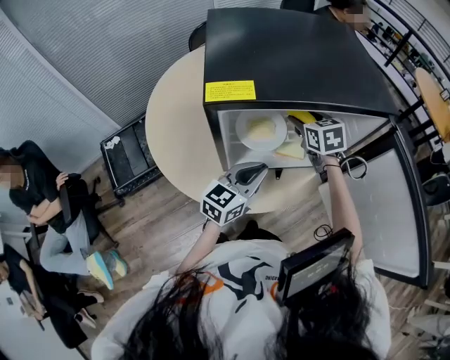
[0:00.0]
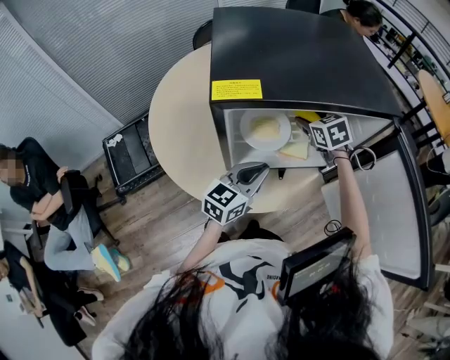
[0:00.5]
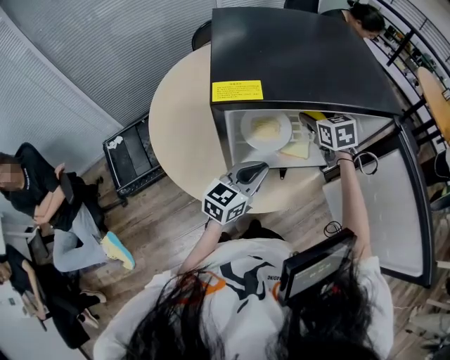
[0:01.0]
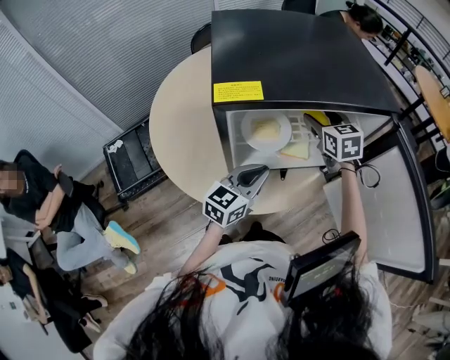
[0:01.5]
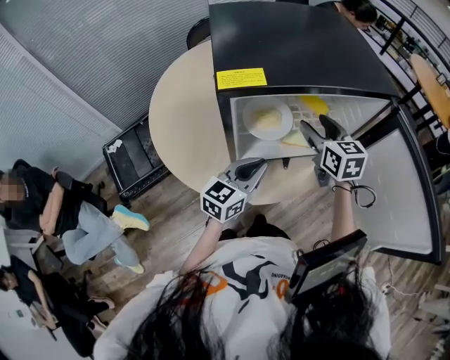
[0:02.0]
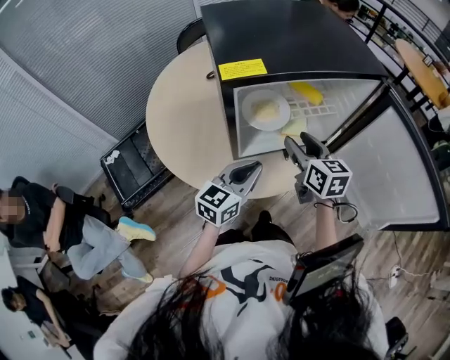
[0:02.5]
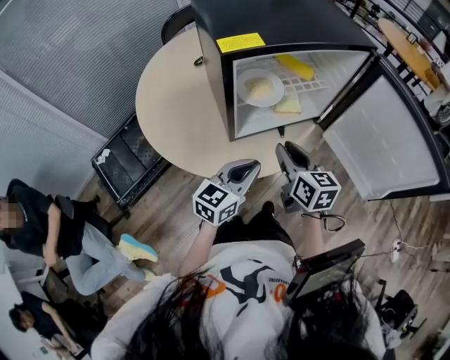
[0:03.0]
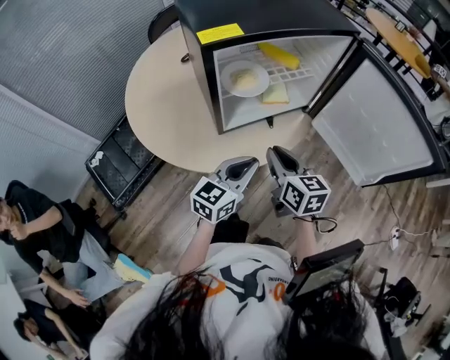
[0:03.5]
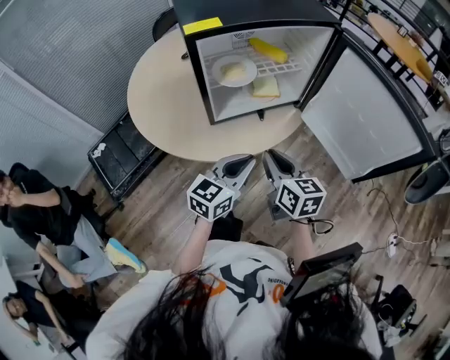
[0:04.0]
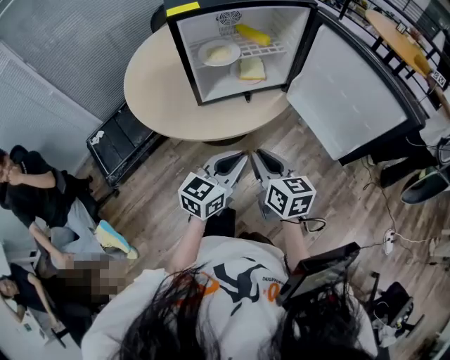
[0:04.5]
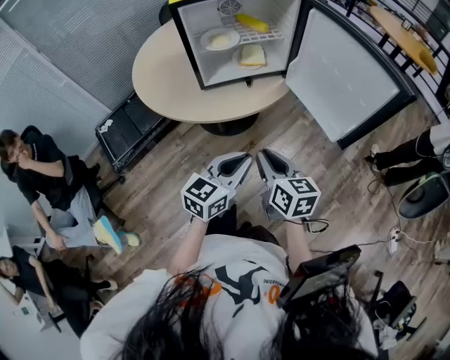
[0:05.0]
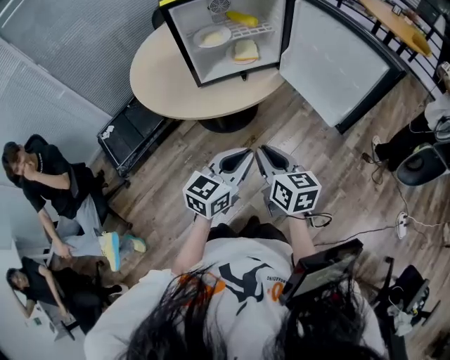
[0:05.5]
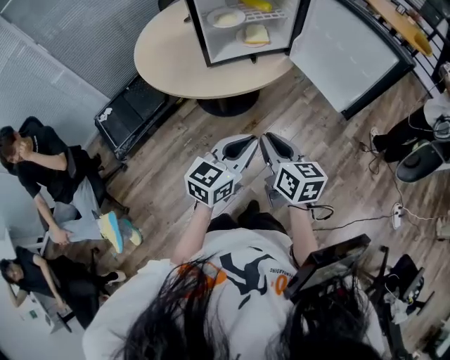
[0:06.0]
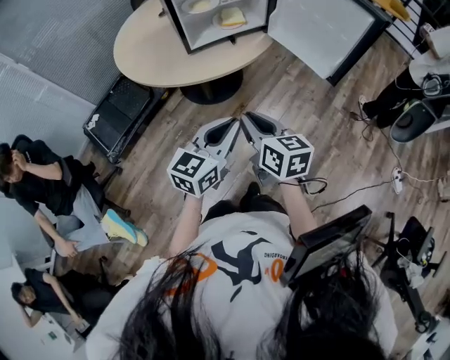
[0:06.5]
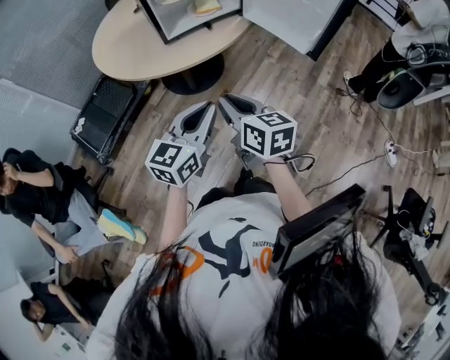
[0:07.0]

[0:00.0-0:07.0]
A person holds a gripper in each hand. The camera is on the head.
0:00.0 to 0:02.0: The right gripper travels backward by some 10 cm.
0:02.0 to 0:03.5: The right gripper is displaced backward by approximately 25 cm, rotates some 20 degrees, and closes its fingers; the left gripper shifts some 15 cm backward.
0:03.5 to 0:05.0: The two grippers go roughly 25 cm backward and to the right.
0:05.0 to 0:07.0: The two grippers go approximately 10 cm backward and to the left.

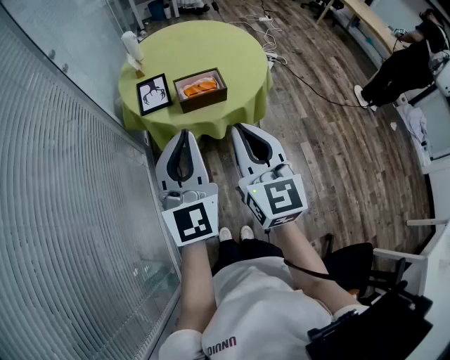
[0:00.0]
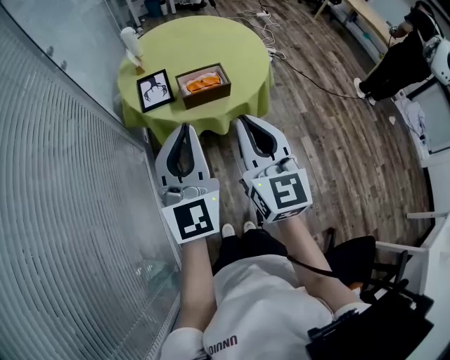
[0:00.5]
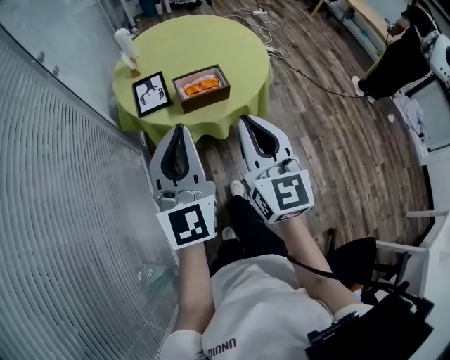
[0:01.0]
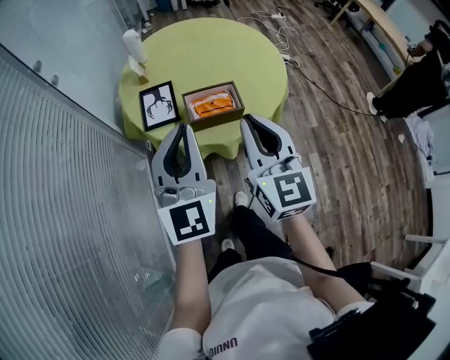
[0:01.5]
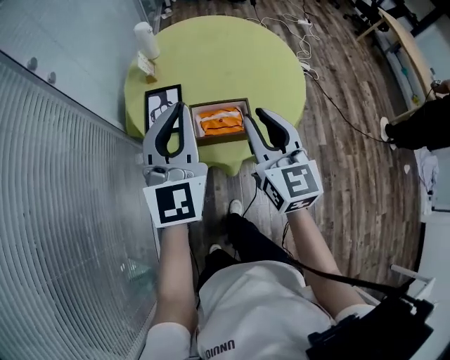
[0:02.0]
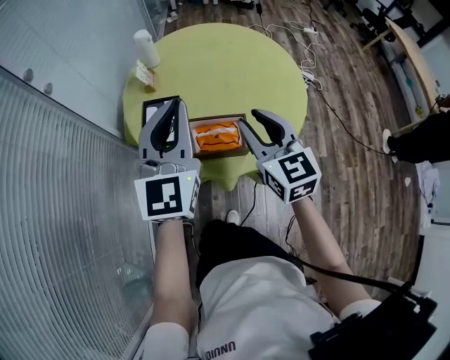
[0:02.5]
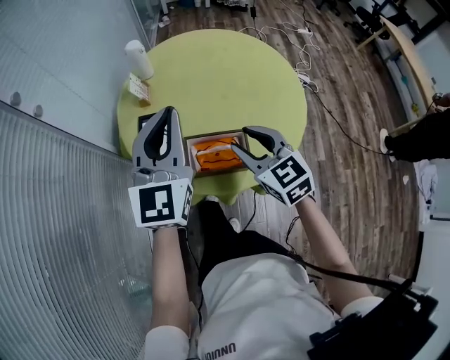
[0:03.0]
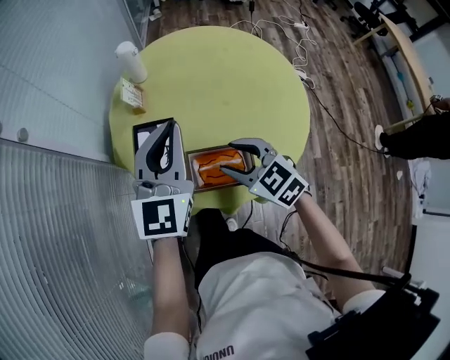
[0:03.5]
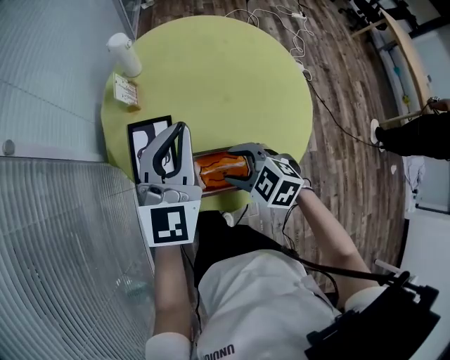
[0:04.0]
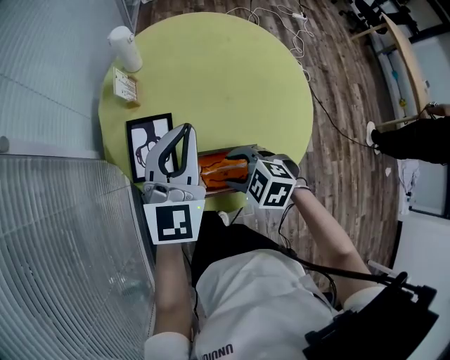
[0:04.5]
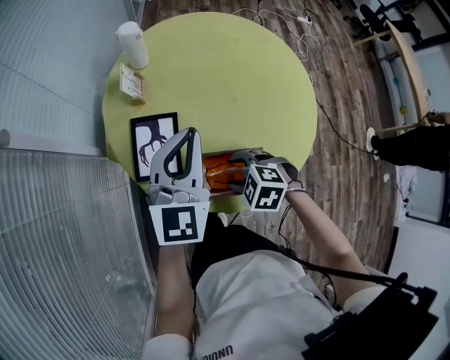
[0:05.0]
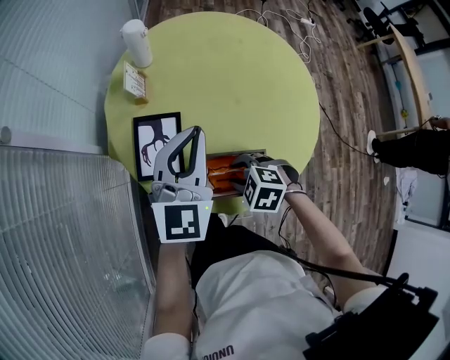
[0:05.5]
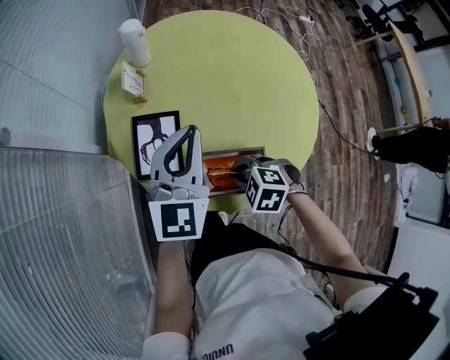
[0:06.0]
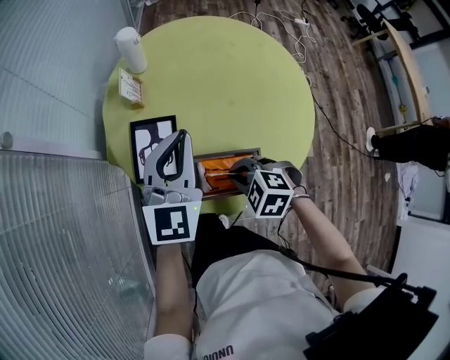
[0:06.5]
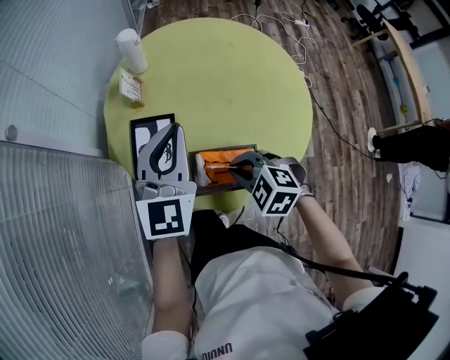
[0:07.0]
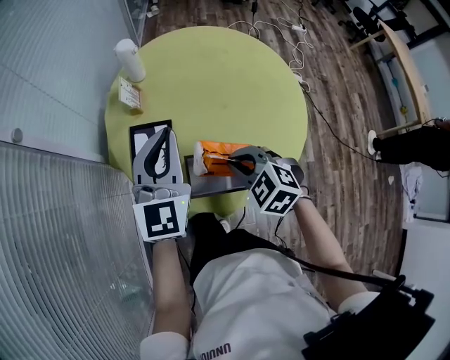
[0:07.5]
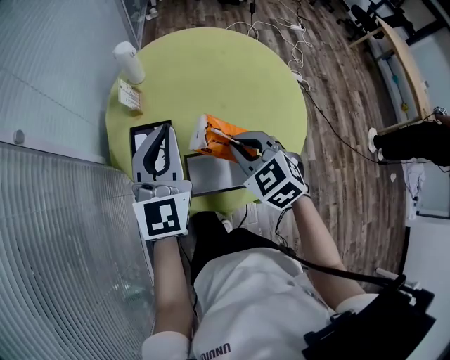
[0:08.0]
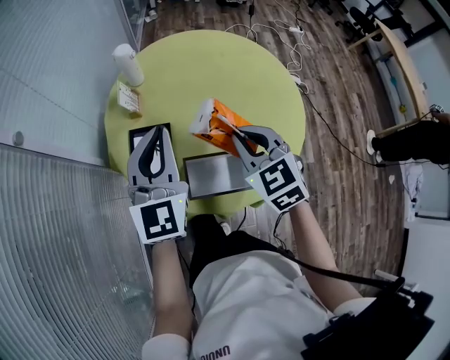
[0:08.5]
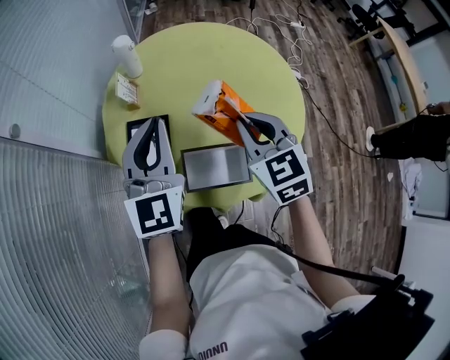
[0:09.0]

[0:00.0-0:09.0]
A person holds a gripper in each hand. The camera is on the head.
0:00.0 to 0:02.0: Both grippers travel together forward, approximately 25 cm.
0:02.0 to 0:04.5: The left gripper is displaced forward and downward by some 20 cm; the right gripper is displaced downward and forward by some 25 cm, angles its fingers downward, by roughly 50 degrees, and opens up.
0:04.5 to 0:07.0: The right gripper closes up.
0:07.0 to 0:09.0: The right gripper is displaced upward, forward and to the right by roughly 15 cm, and points its fingers approximately 30 degrees further upward.

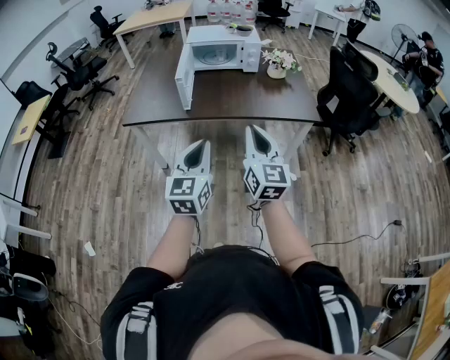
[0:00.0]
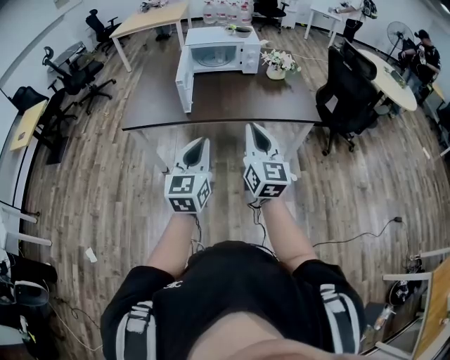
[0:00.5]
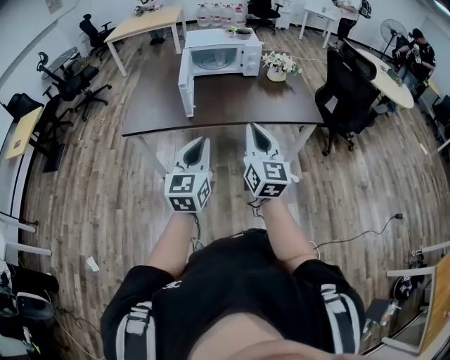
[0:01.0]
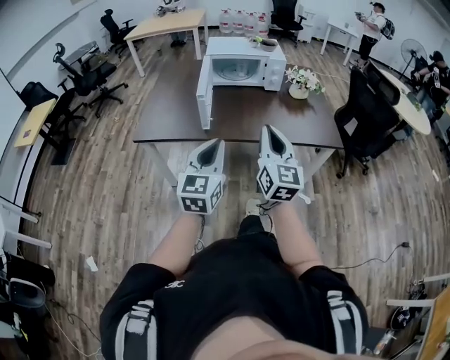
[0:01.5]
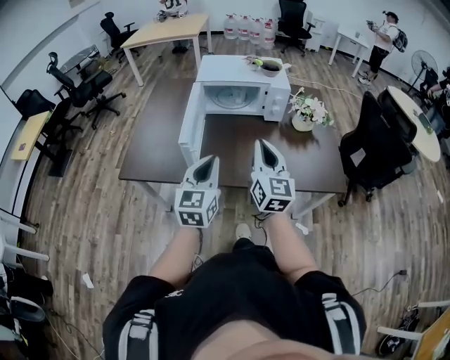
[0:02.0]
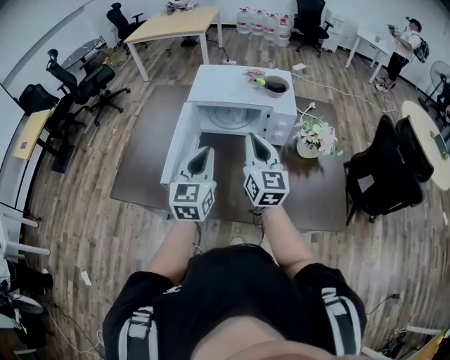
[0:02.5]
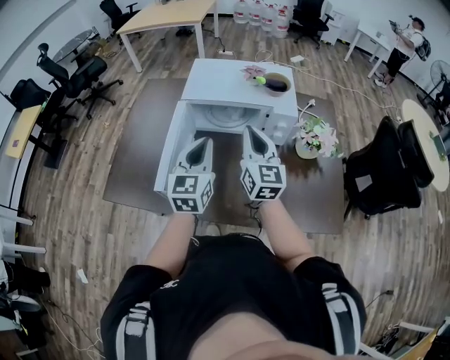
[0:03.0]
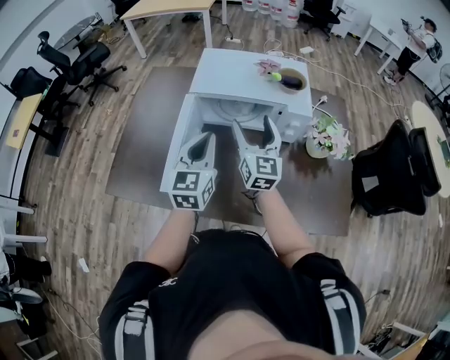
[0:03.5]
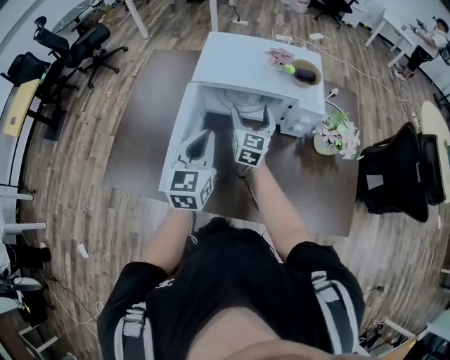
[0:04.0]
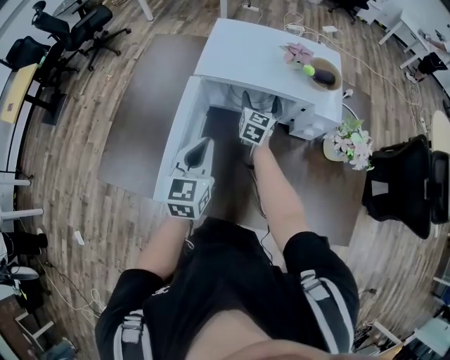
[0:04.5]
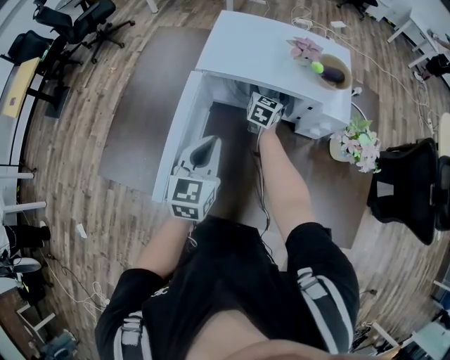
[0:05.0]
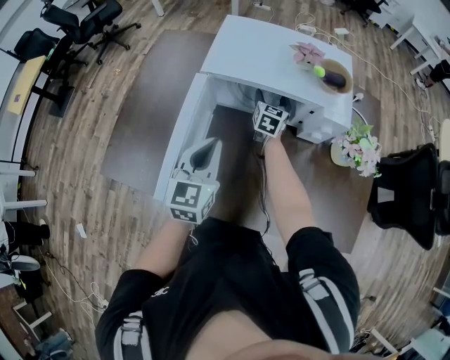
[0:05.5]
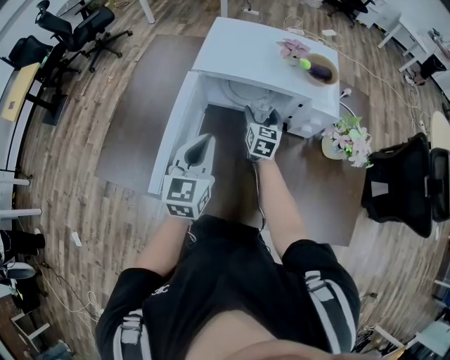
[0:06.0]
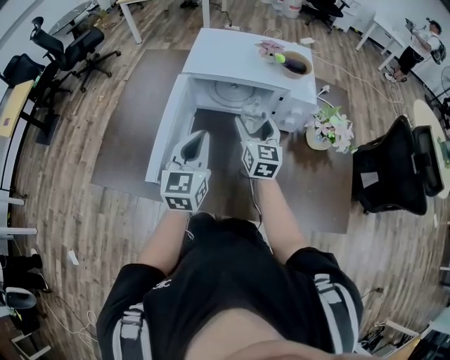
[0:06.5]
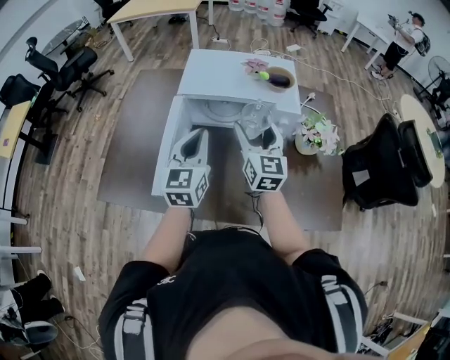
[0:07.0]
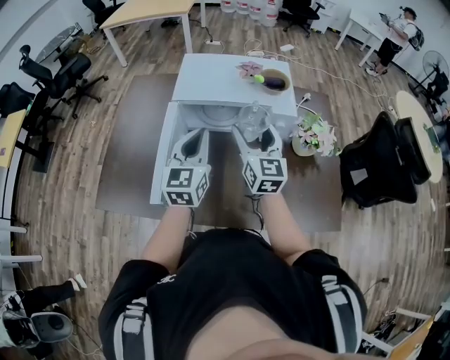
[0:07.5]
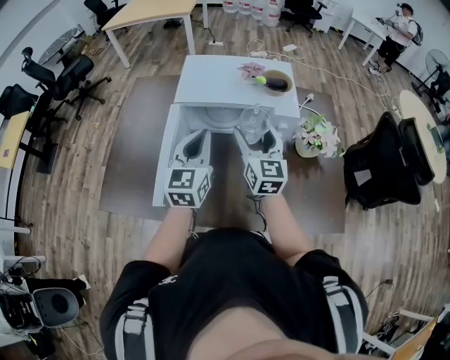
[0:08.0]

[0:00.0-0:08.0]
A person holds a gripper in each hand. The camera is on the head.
0:00.0 to 0:02.0: The grippers both shift forward by about 40 cm.
0:02.0 to 0:04.0: The grippers both shift forward by approximately 35 cm. The right gripper opens.
0:04.0 to 0:06.0: The right gripper goes approximately 10 cm downward, and goes forward and returns, roughly 15 cm each way. Meanwhile the left gripper travels downward by roughly 5 cm.
0:06.0 to 0:08.0: The right gripper heads upward and backward, covering approximately 25 cm, while the left gripper heads upward, covering roughly 10 cm.

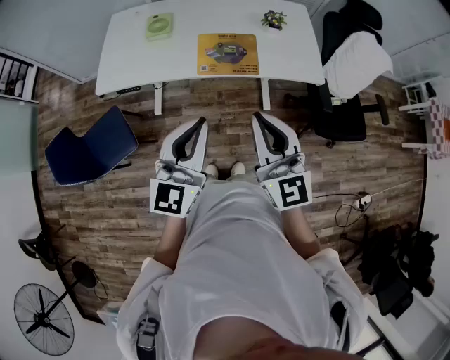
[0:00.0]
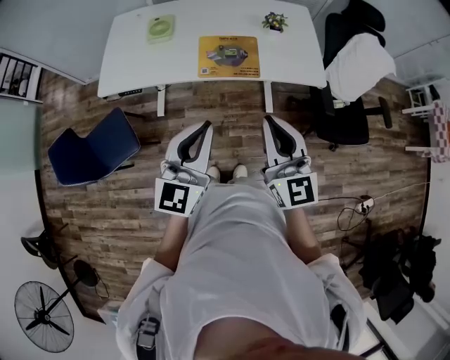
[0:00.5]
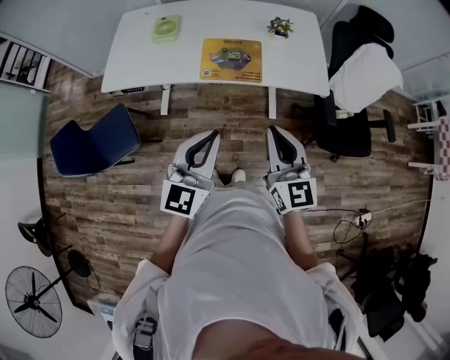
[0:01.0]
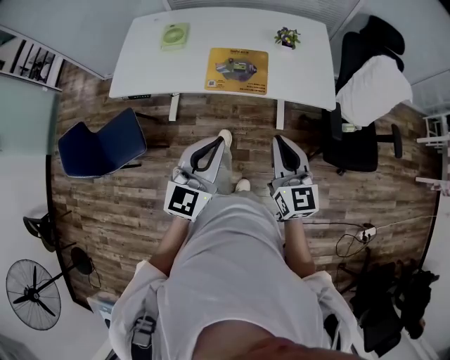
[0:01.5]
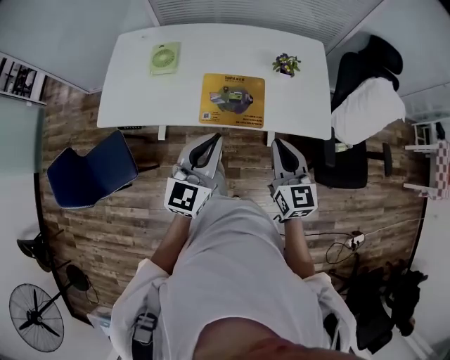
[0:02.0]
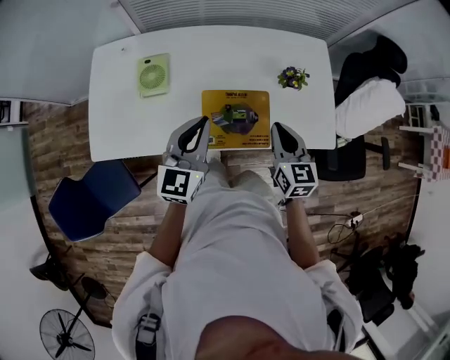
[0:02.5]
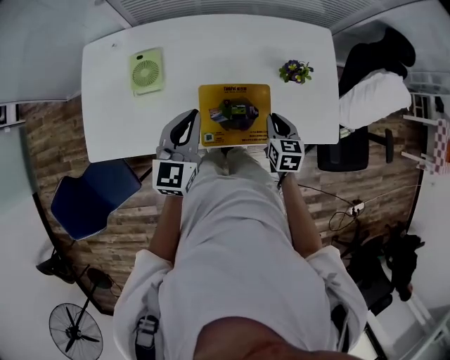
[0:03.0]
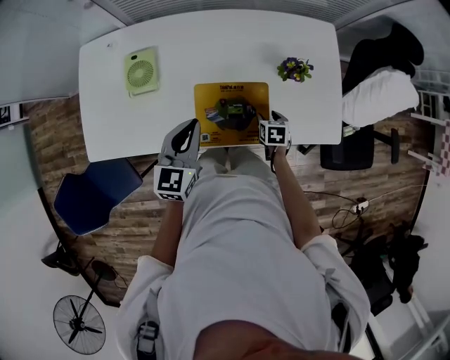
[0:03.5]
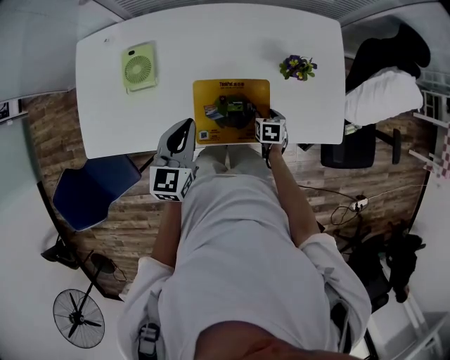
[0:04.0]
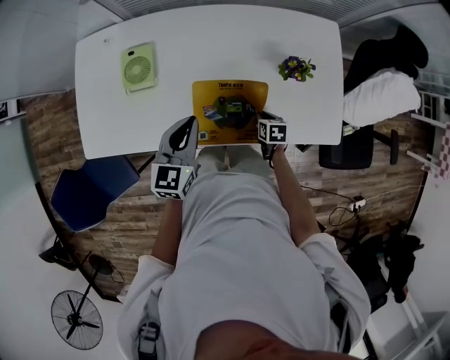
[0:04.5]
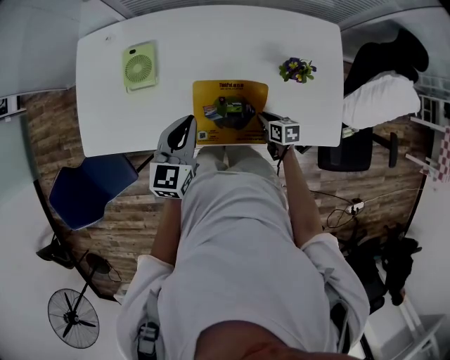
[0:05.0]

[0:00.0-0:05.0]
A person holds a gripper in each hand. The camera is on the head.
0:00.0 to 0:02.5: The left gripper heads forward, covering approximately 40 cm. The right gripper heads forward and downward, covering some 40 cm, and turns by approximately 30 degrees.
0:02.5 to 0:05.0: The right gripper moves downward, roughly 30 cm, swivels some 40 degrees, and opens, then closes once more; the left gripper moves downward, approximately 10 cm.
